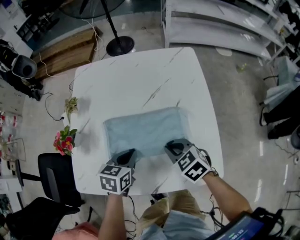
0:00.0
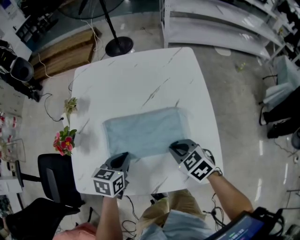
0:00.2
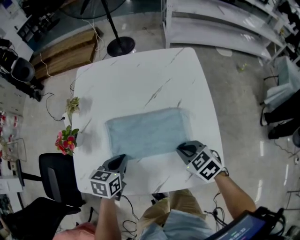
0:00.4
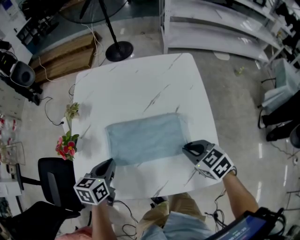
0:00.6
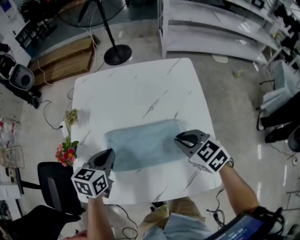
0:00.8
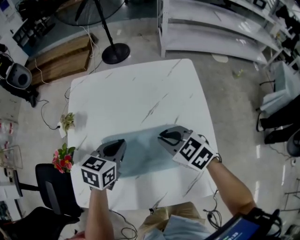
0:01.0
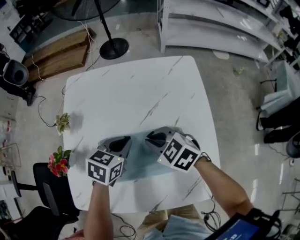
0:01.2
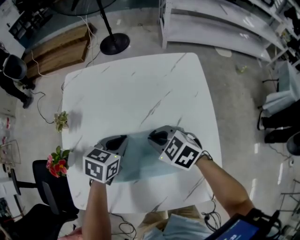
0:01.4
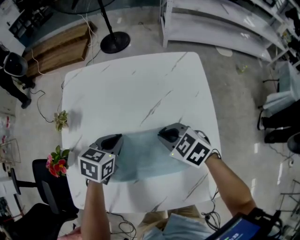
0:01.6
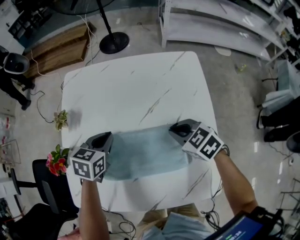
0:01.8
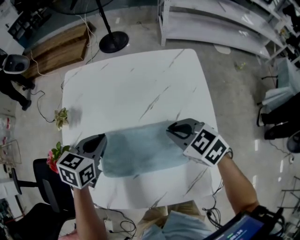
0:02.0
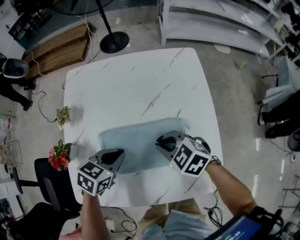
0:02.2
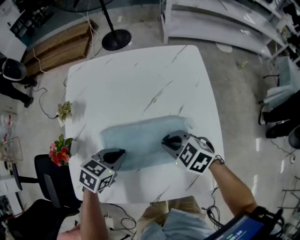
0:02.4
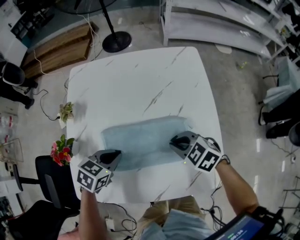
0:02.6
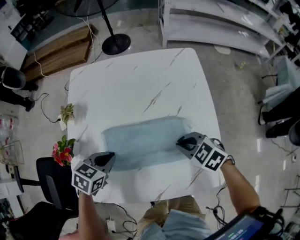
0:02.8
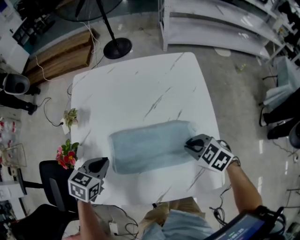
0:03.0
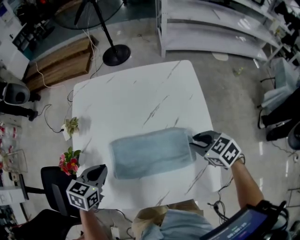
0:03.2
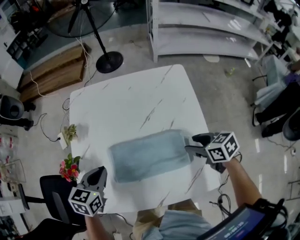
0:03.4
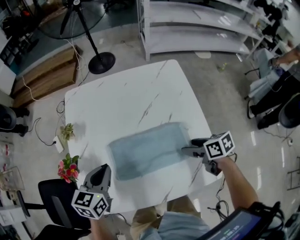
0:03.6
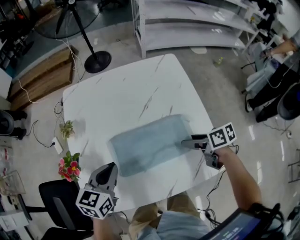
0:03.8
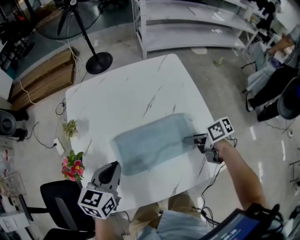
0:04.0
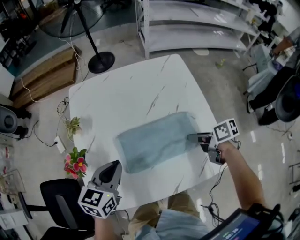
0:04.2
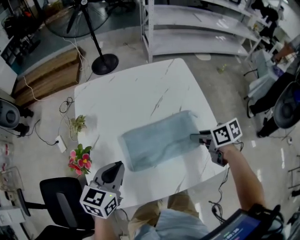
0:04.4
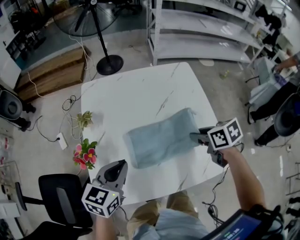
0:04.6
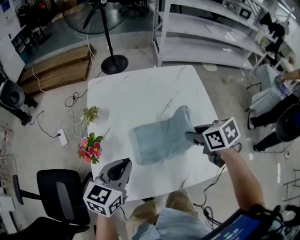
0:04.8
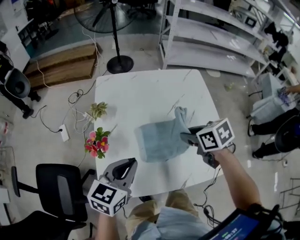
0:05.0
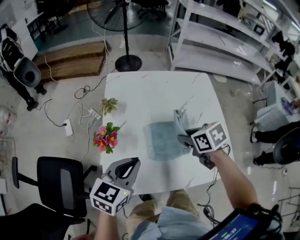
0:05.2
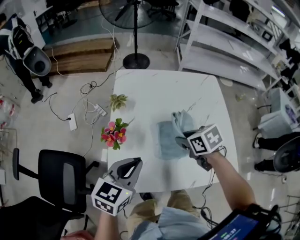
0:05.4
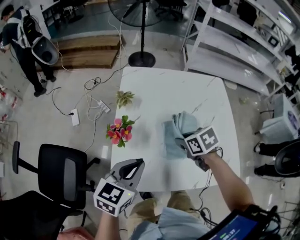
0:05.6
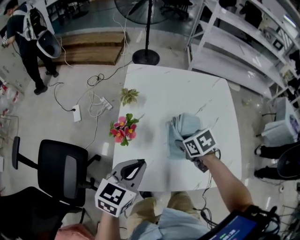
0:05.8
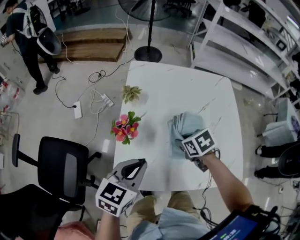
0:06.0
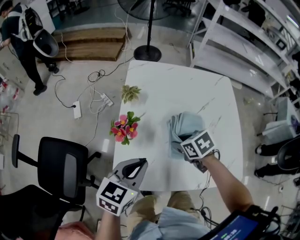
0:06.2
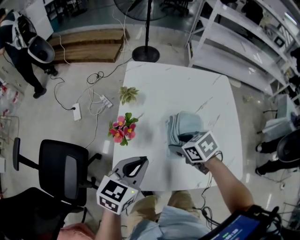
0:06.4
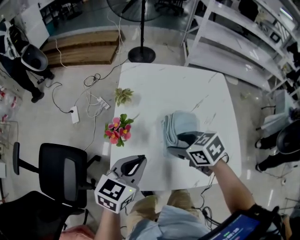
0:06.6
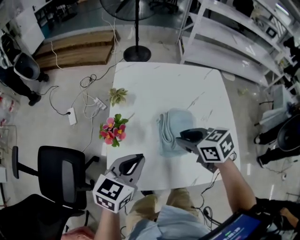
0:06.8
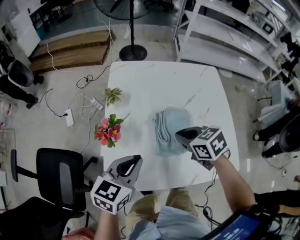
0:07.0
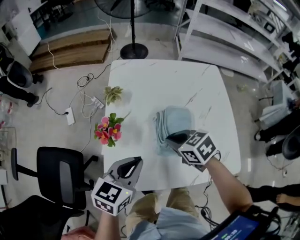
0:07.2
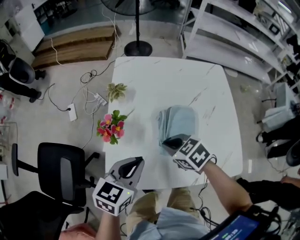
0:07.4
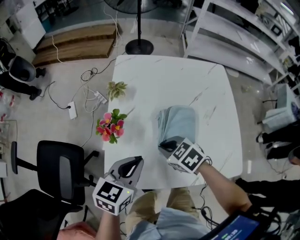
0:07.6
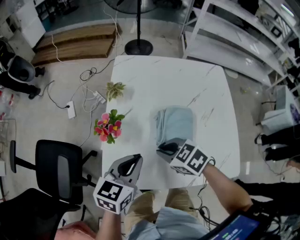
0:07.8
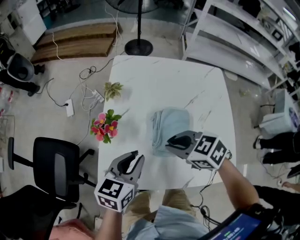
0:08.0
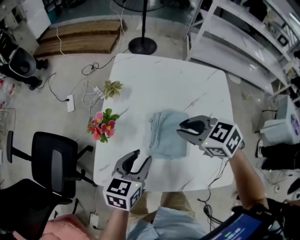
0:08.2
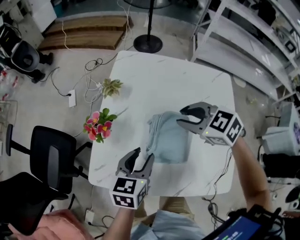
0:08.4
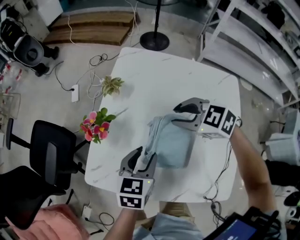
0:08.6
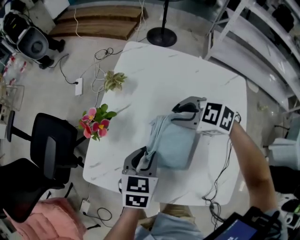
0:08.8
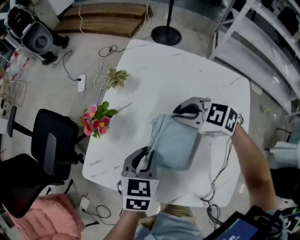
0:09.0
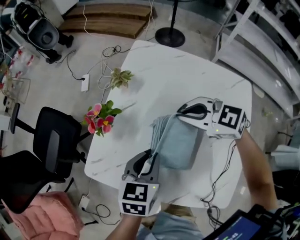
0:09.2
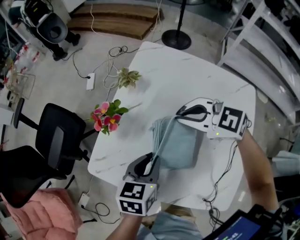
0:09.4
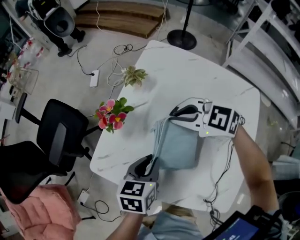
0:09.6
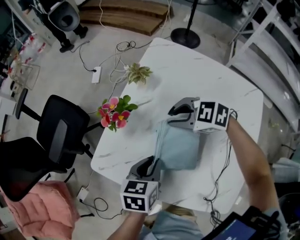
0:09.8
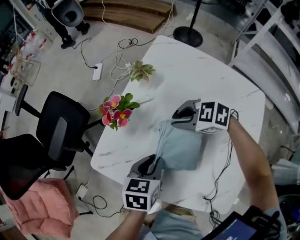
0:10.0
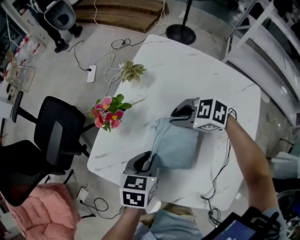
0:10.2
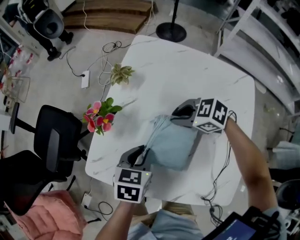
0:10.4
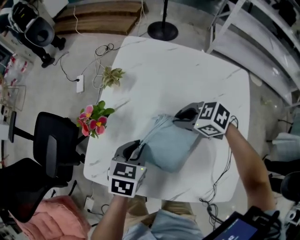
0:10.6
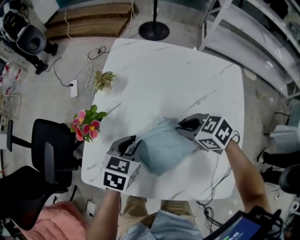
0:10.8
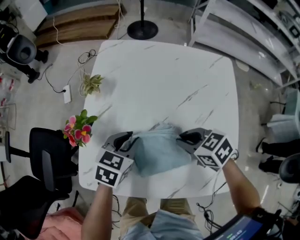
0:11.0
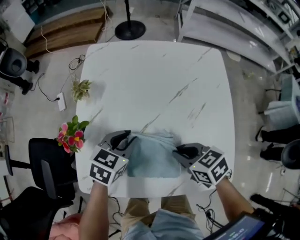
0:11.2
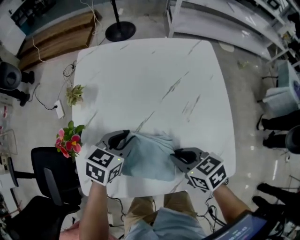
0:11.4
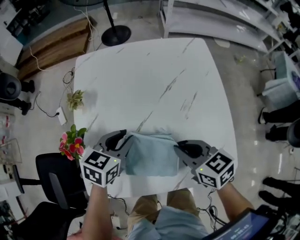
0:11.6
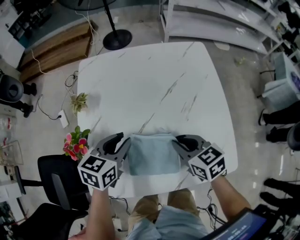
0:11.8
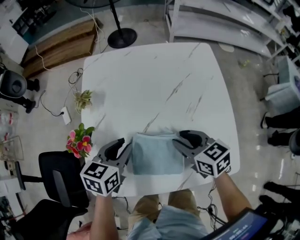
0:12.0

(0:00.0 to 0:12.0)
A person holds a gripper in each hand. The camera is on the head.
0:00.0 - 0:01.6: The grippers both shift forward by approximately 15 cm.
0:01.6 - 0:03.0: The left gripper moves to the left and backward, approximately 15 cm; the right gripper moves backward and to the right, some 10 cm.
0:03.0 - 0:04.4: The right gripper rotates around the line of its fingers by approximately 50 degrees, clockwise from behind, and opens, then closes once more. Meanwhile the left gripper goes some 10 cm upward, and turns by approximately 20 degrees.
0:04.4 - 0:06.0: The right gripper goes approximately 25 cm to the left, and turns by roughly 40 degrees. The left gripper heads to the left and backward, covering approximately 10 cm.
0:06.0 - 0:07.6: The right gripper shifts some 5 cm to the left, reaches some 10 cm upward, then returns, rotates about 20 degrees, and opens, then closes once more.
0:07.6 - 0:09.0: The left gripper ends up some 10 cm from where it was, swivels about 30 degrees, and opens and closes again. Meanwhile the right gripper shifts by approximately 15 cm, changes its angle by some 40 degrees, and opens, then closes again.
0:09.0 - 0:10.4: The right gripper shifts approximately 5 cm downward.
0:10.4 - 0:12.0: The right gripper shifts by some 15 cm, and turns by some 60 degrees. The left gripper ends up approximately 5 cm from where it was, and swivels some 30 degrees.

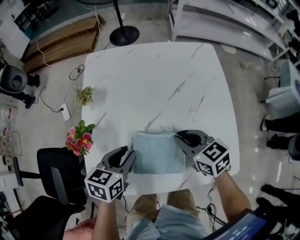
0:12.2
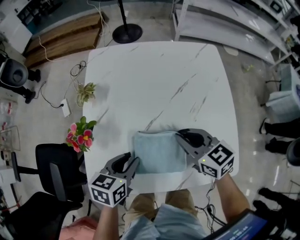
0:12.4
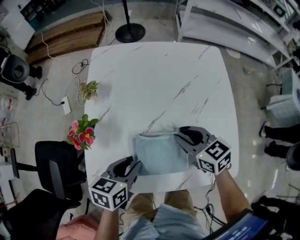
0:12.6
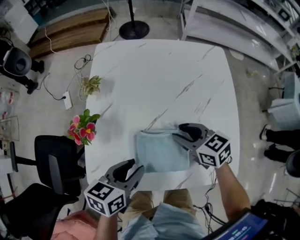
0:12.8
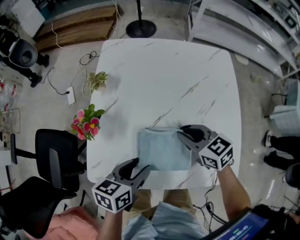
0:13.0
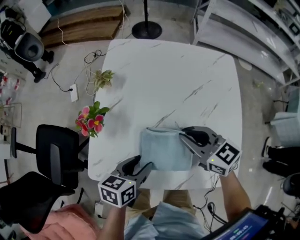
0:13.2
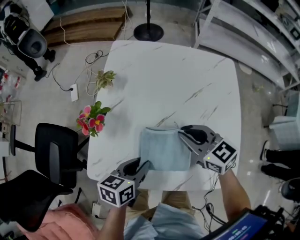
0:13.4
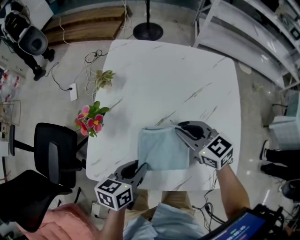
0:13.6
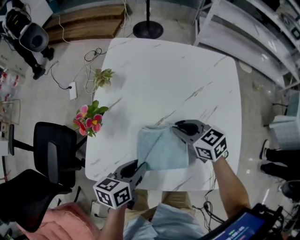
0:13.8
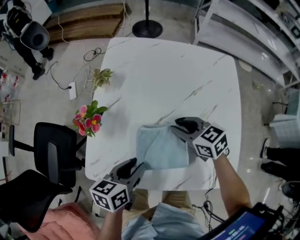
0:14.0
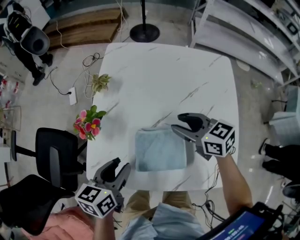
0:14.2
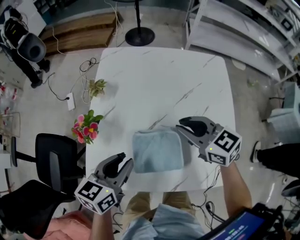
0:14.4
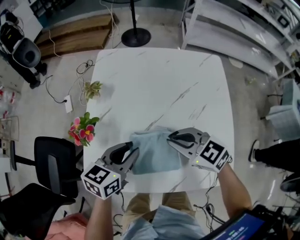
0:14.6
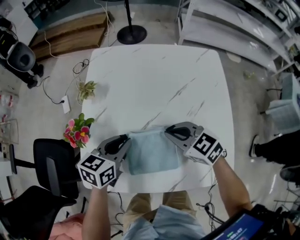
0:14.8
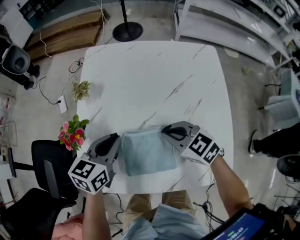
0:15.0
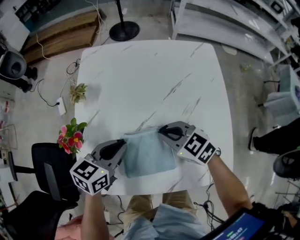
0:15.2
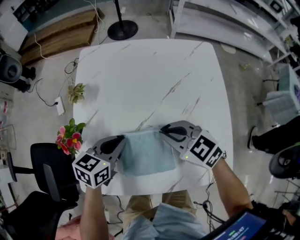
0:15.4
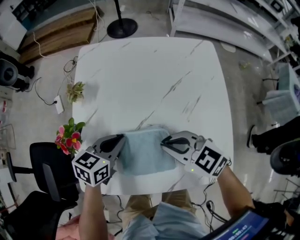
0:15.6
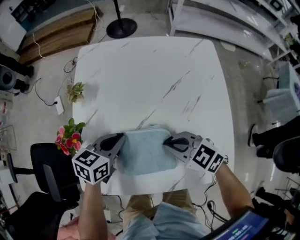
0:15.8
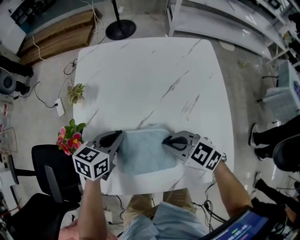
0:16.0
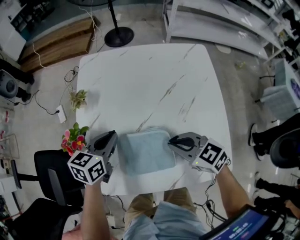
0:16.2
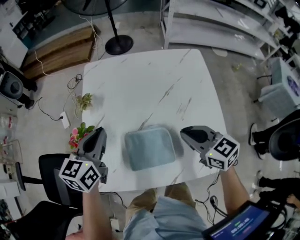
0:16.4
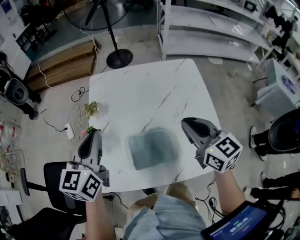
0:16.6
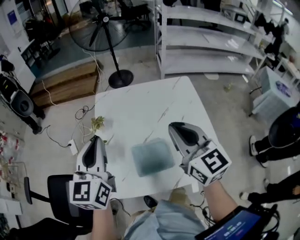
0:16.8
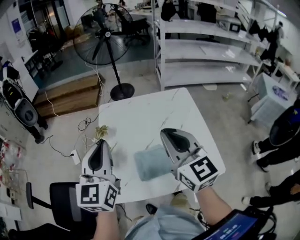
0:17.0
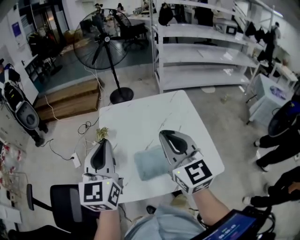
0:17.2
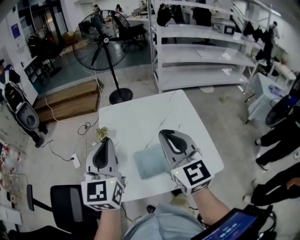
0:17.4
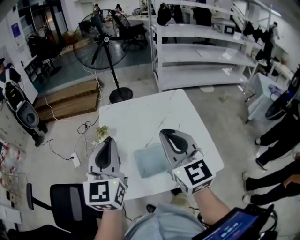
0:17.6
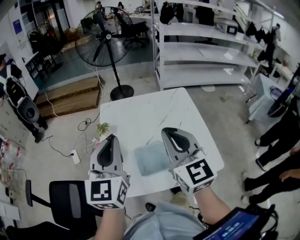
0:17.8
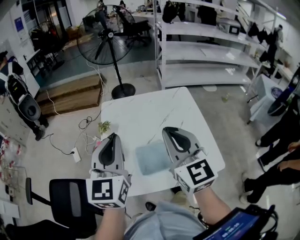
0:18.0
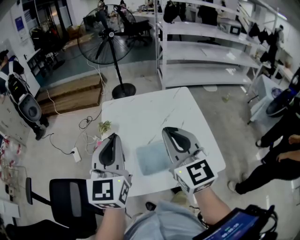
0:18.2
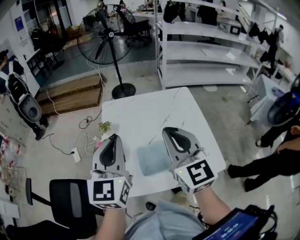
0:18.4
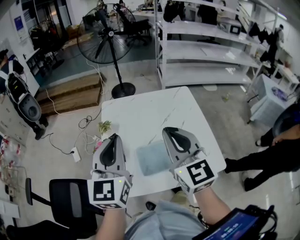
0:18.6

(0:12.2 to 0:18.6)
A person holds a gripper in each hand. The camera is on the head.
0:12.2 - 0:13.8: The left gripper goes about 10 cm backward, and swivels approximately 20 degrees; the right gripper shifts by some 5 cm, and opens and closes again.
0:13.8 - 0:15.4: The right gripper opens and closes again; the left gripper heads forward, covering roughly 10 cm, and changes its angle by roughly 30 degrees.
0:15.4 - 0:17.0: The grippers both shift upward by roughly 30 cm. The right gripper tips its fingers upward by roughly 30 degrees, while the left gripper angles its fingers upward, by approximately 30 degrees.
0:17.0 - 0:18.6: The grippers move only a little.

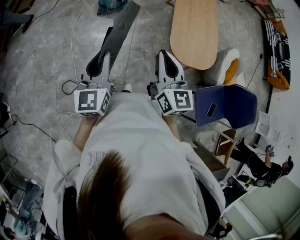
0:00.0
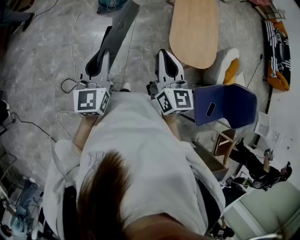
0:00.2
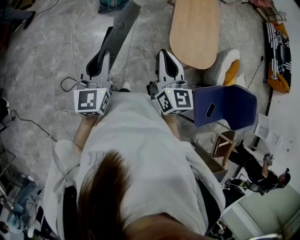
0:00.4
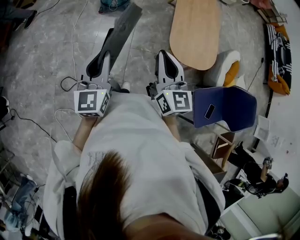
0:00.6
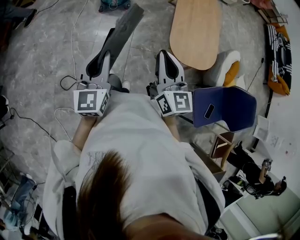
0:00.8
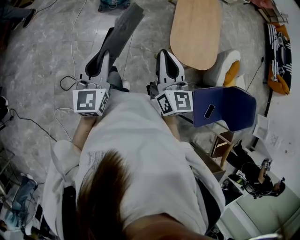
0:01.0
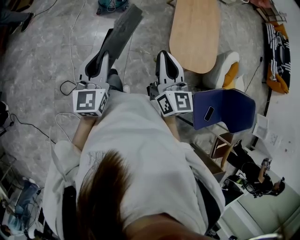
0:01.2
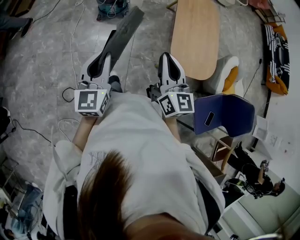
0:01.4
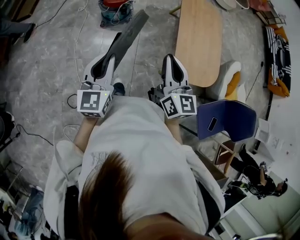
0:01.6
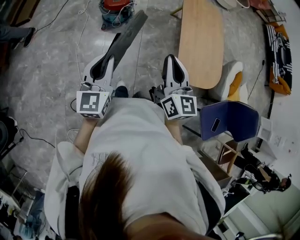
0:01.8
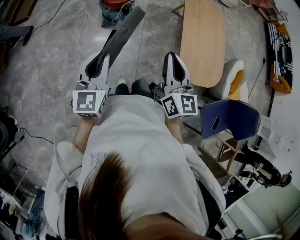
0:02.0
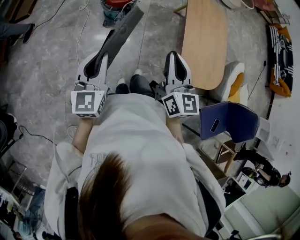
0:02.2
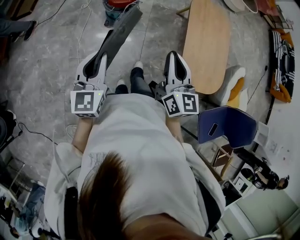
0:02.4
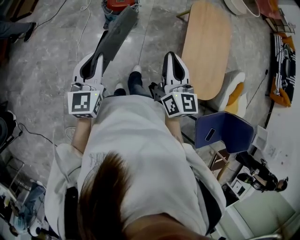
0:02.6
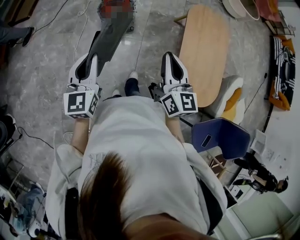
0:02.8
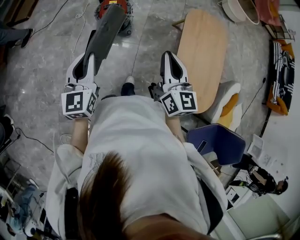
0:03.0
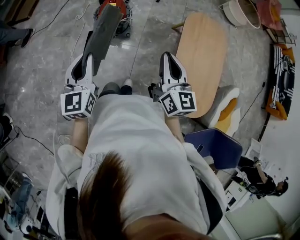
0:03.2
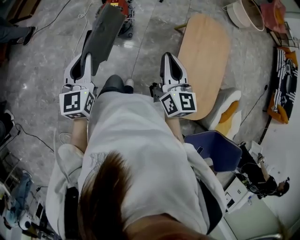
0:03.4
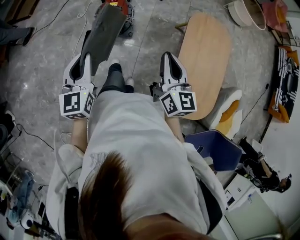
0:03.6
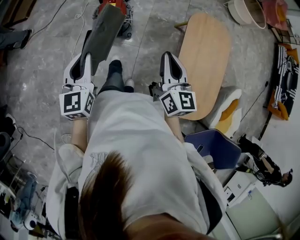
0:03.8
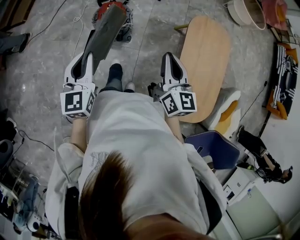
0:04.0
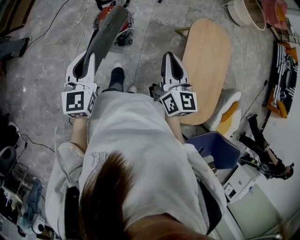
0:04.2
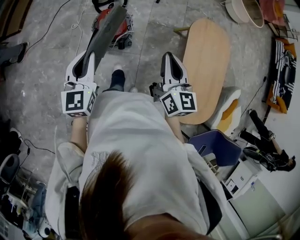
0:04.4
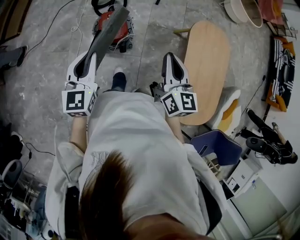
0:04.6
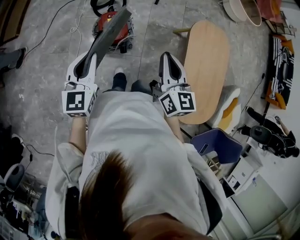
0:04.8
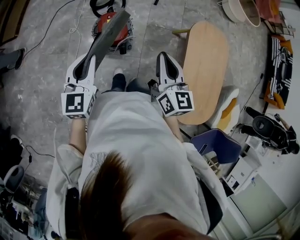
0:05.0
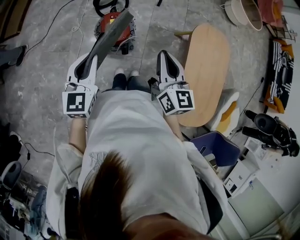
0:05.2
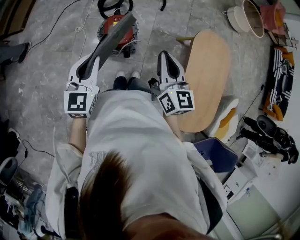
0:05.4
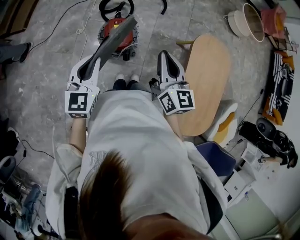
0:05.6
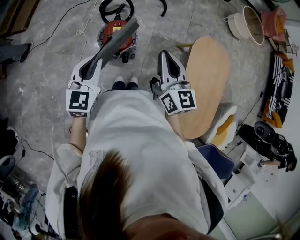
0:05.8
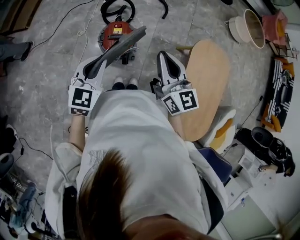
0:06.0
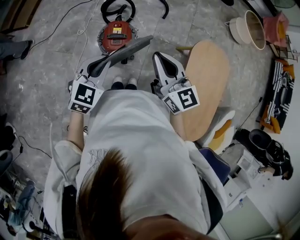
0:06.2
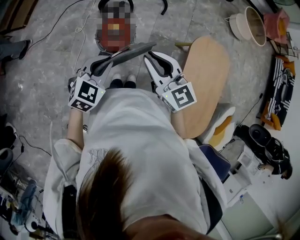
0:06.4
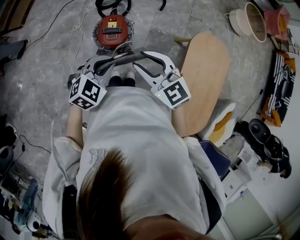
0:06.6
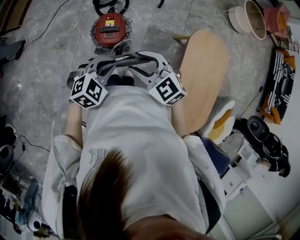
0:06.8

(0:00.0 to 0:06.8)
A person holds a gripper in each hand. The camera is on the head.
0:00.0 - 0:01.4: The grippers both shift forward by about 10 cm.
0:01.4 - 0:02.8: Both grippers move forward, approximately 25 cm.
0:02.8 - 0:04.0: The grippers both shift forward by some 20 cm.
0:04.0 - 0:05.4: The two grippers go approximately 15 cm forward and to the left.
0:05.4 - 0:06.8: The right gripper heads downward, covering roughly 5 cm, changes its angle by about 60 degrees, and opens up, while the left gripper is displaced to the right and downward by roughly 15 cm, and rotates approximately 50 degrees.
